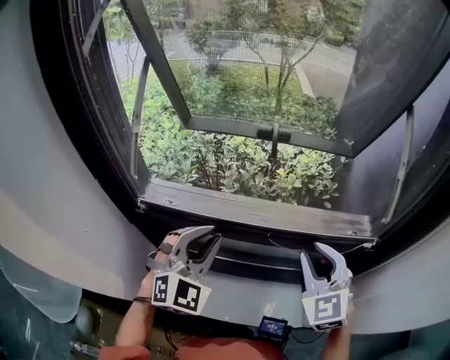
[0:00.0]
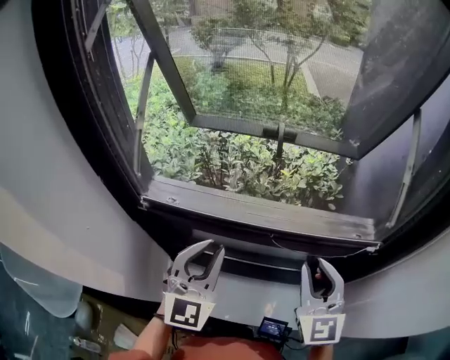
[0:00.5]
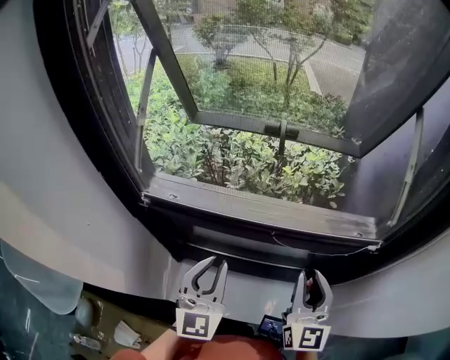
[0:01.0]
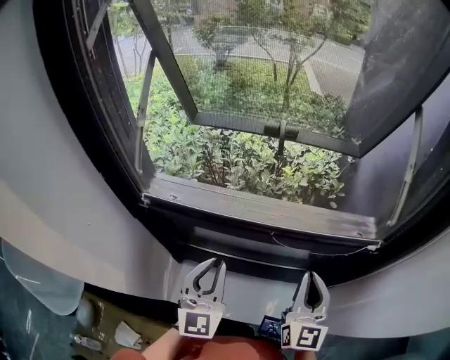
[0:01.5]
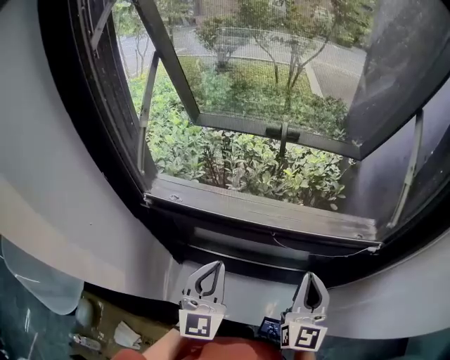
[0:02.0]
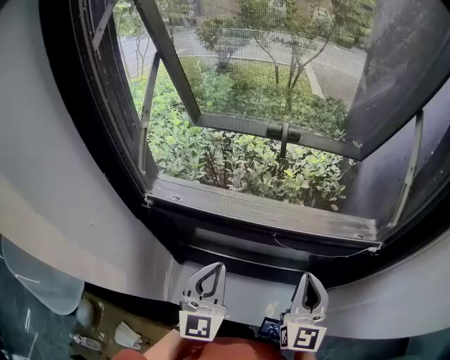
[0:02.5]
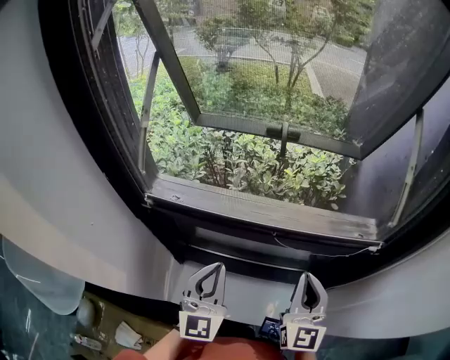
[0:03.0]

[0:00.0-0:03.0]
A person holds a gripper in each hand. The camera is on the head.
0:00.0 to 0:01.5: The right gripper travels backward by roughly 5 cm, and swivels approximately 40 degrees. The left gripper heads downward and backward, covering roughly 10 cm, and swivels approximately 40 degrees.
0:01.5 to 0:03.0: The grippers make only small movements.

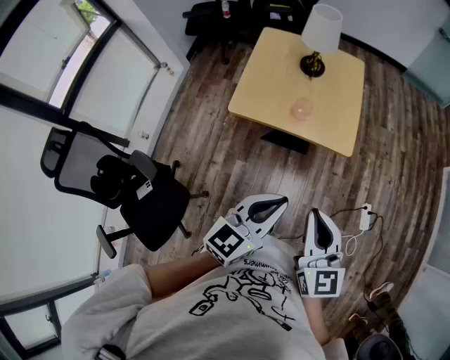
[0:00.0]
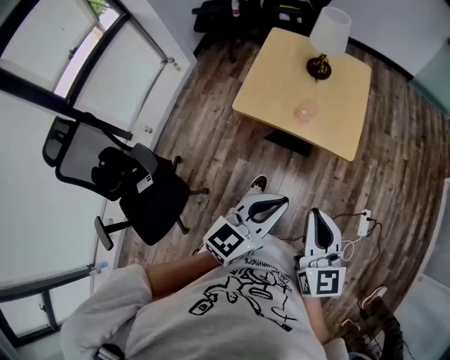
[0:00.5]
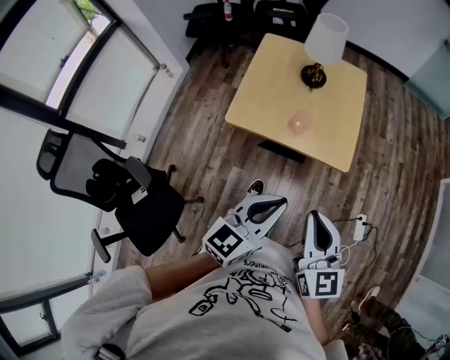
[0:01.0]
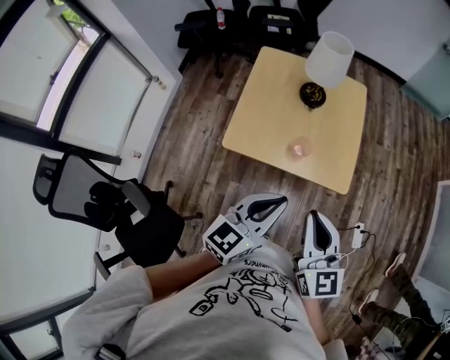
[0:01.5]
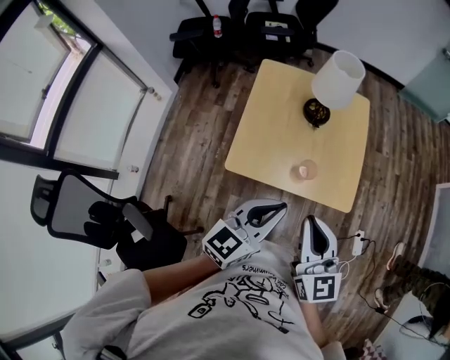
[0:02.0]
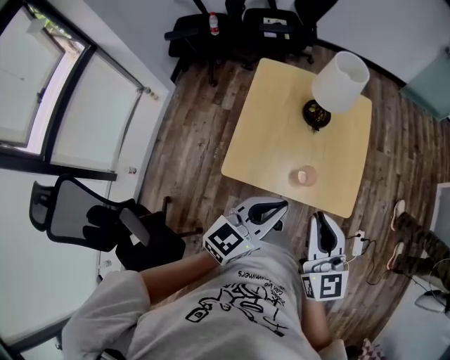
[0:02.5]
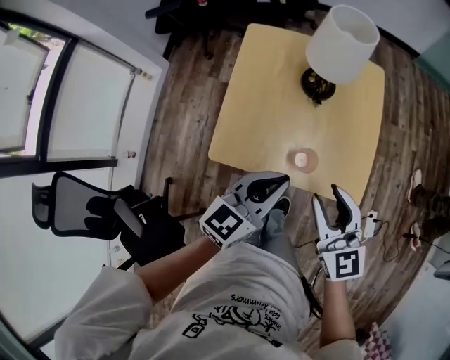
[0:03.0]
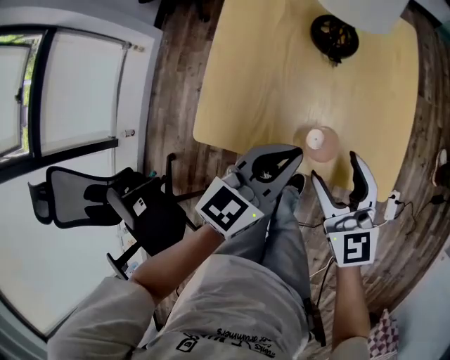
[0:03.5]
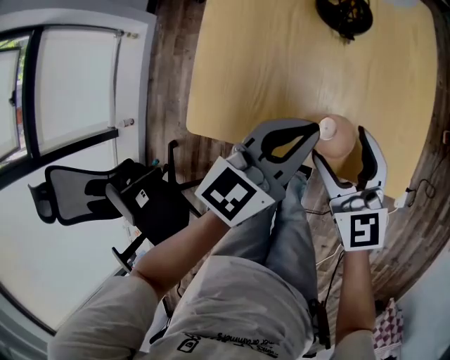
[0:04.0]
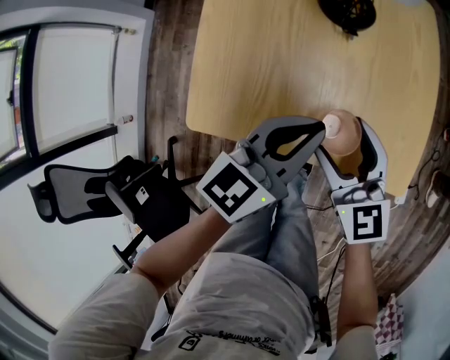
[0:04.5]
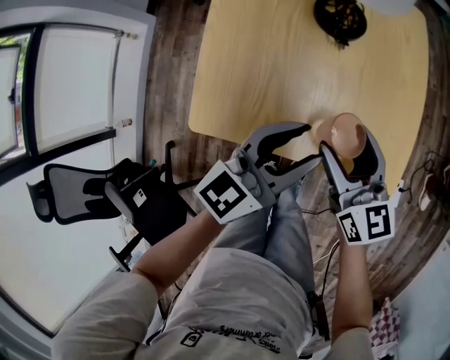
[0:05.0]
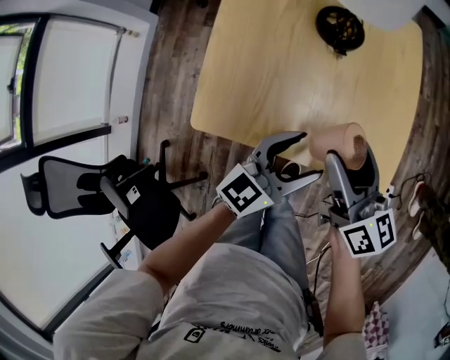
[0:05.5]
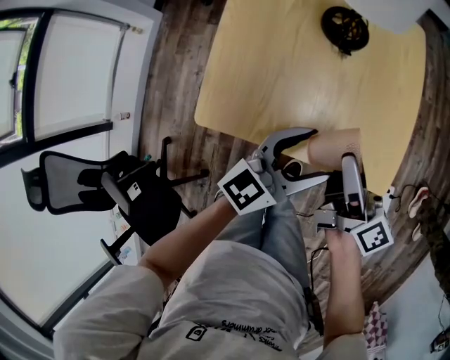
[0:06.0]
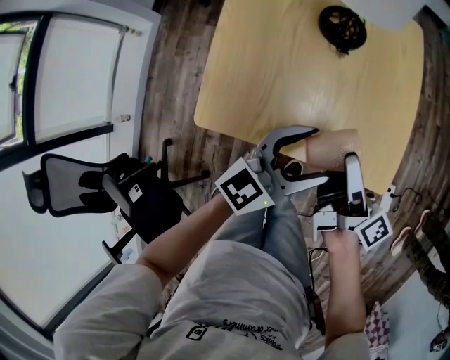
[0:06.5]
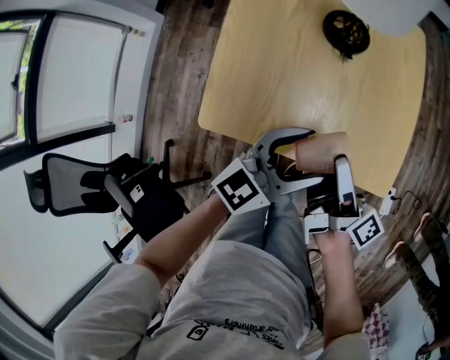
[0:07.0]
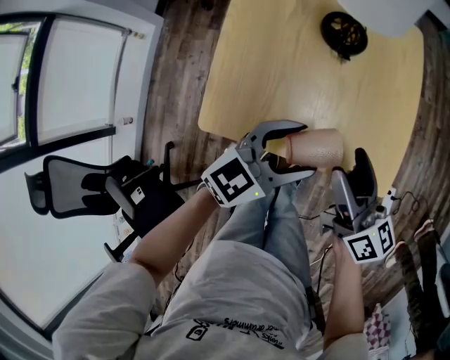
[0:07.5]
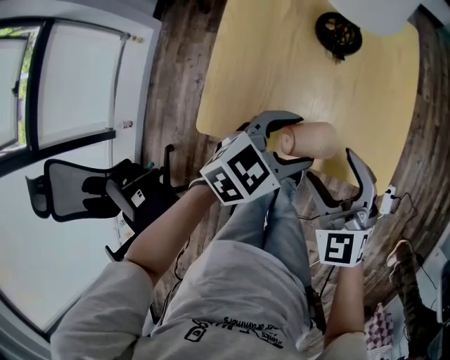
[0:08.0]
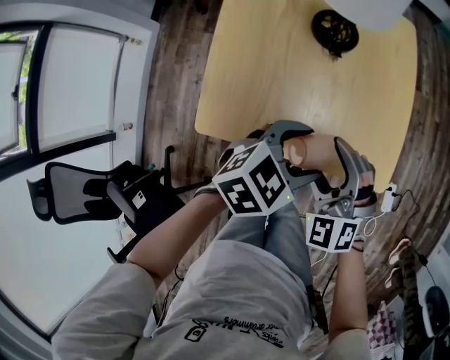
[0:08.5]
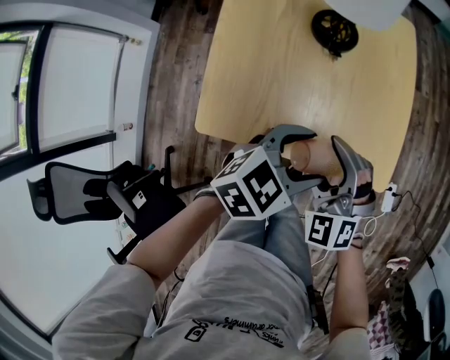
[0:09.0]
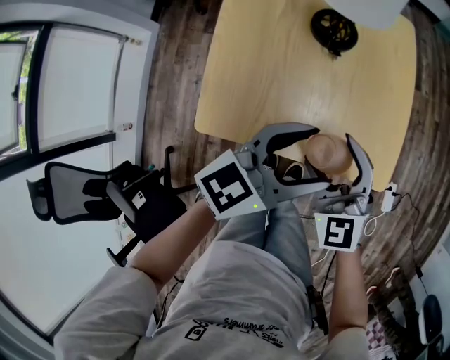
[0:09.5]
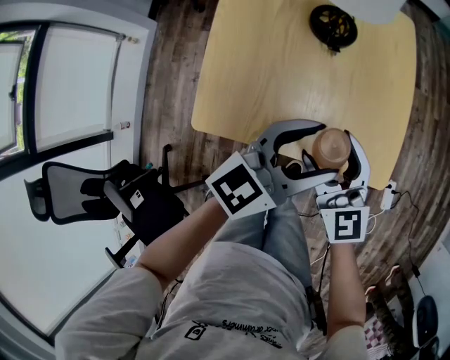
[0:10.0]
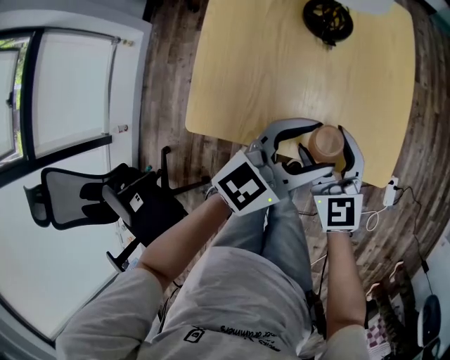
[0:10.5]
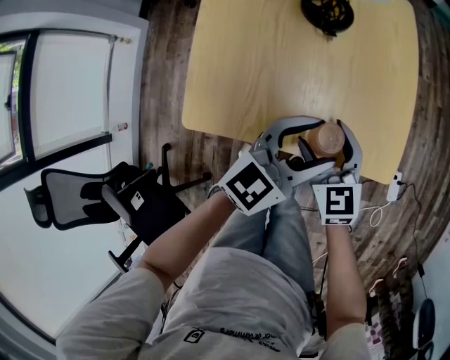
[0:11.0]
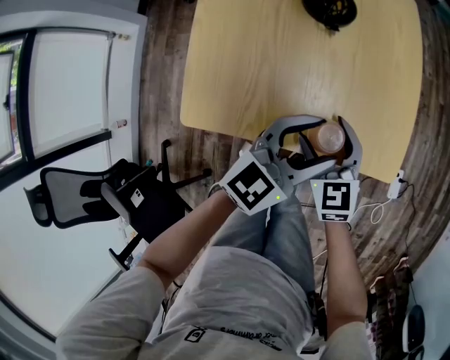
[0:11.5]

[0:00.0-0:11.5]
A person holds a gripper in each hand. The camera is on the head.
0:00.0 to 0:02.0: Both grippers travel together forward and to the left, roughly 25 cm.
0:02.0 to 0:04.0: Both grippers move downward and forward, about 30 cm. The right gripper opens up.
0:04.0 to 0:06.0: The left gripper ends up about 5 cm from where it was, and opens its fingers, while the right gripper shifts some 5 cm upward, and rotates around the line of its fingers by roughly 60 degrees, clockwise from behind.
0:06.0 to 0:07.5: The right gripper changes its angle by roughly 20 degrees.
0:07.5 to 0:09.5: The left gripper heads upward, covering some 5 cm. The right gripper rolls counterclockwise, seen from behind, by some 60 degrees.
0:09.5 to 0:11.5: Both grippers move downward, approximately 10 cm. The right gripper swivels approximately 20 degrees.

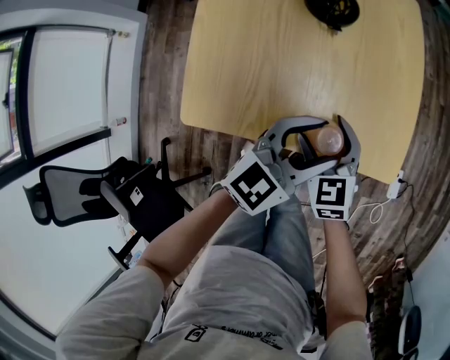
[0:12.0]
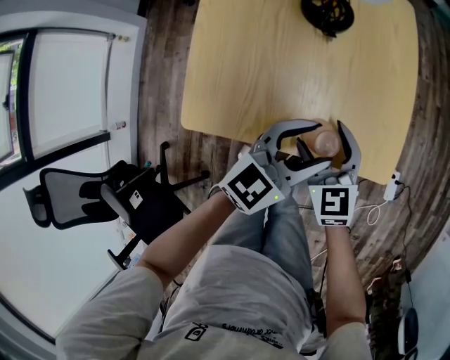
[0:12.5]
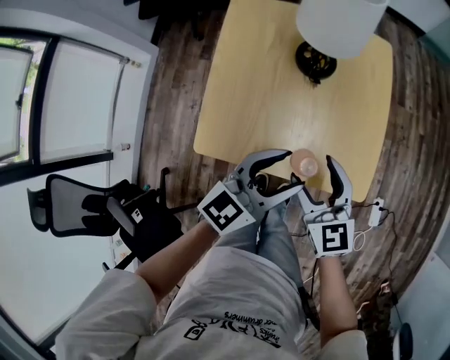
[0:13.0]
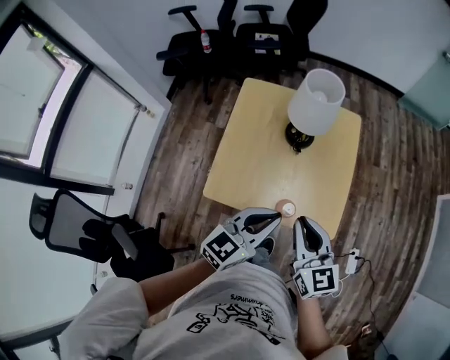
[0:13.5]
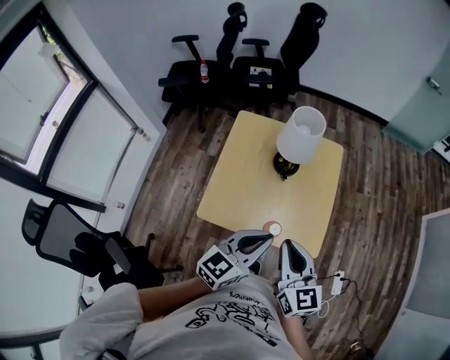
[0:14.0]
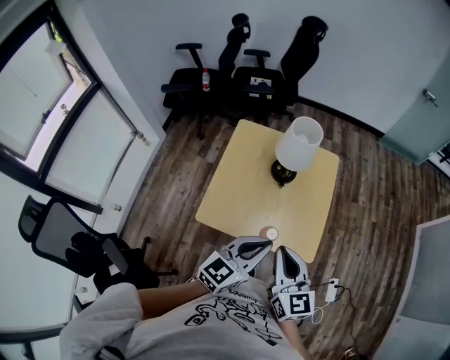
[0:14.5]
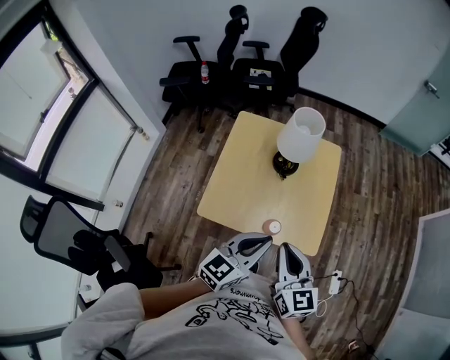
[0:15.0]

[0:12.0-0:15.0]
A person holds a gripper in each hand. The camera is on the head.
0:12.0 to 0:13.5: The left gripper heads upward, covering approximately 20 cm, and closes; the right gripper is displaced upward by roughly 30 cm, turns by some 30 degrees, and closes its fingers.
0:13.5 to 0:15.0: The left gripper changes place by about 5 cm. The right gripper goes about 5 cm upward.

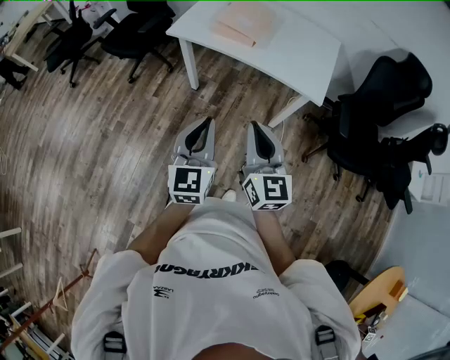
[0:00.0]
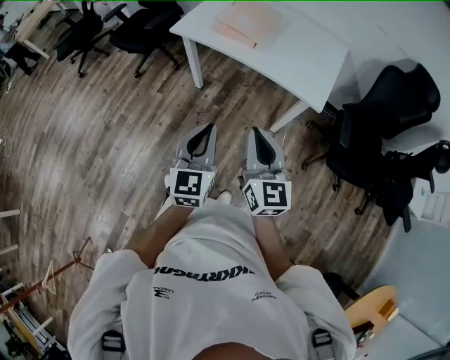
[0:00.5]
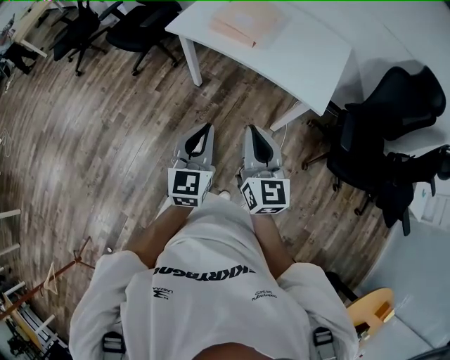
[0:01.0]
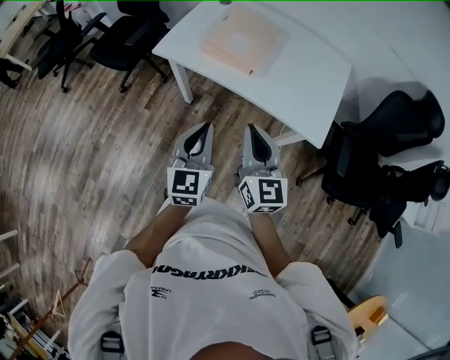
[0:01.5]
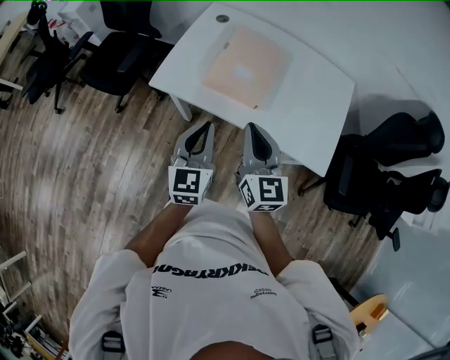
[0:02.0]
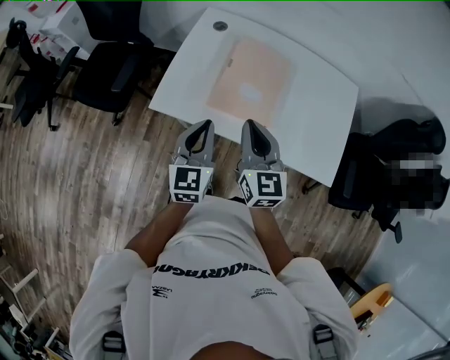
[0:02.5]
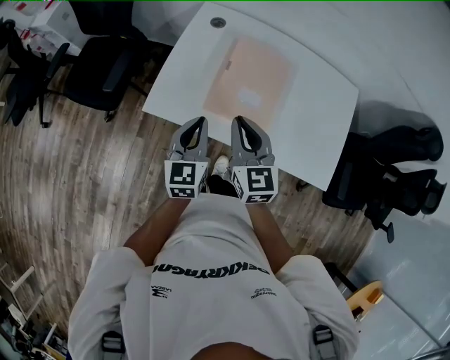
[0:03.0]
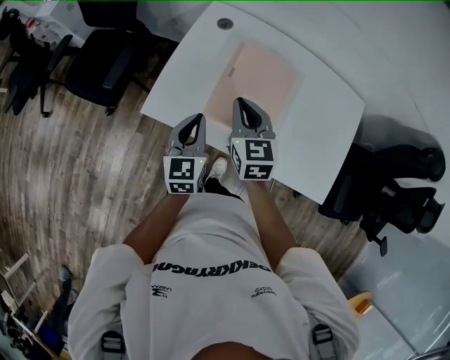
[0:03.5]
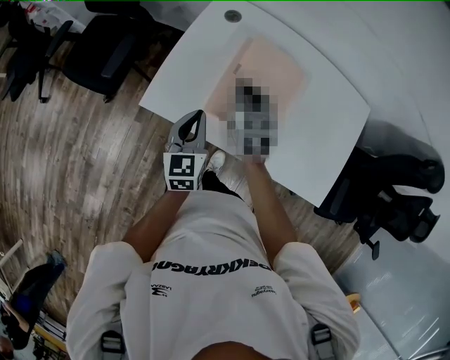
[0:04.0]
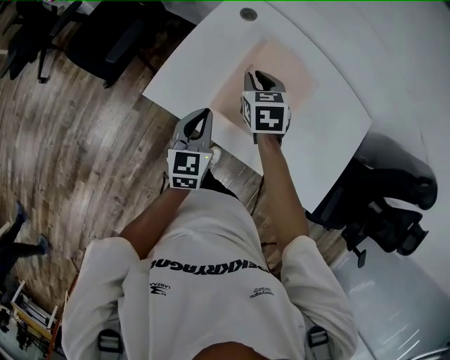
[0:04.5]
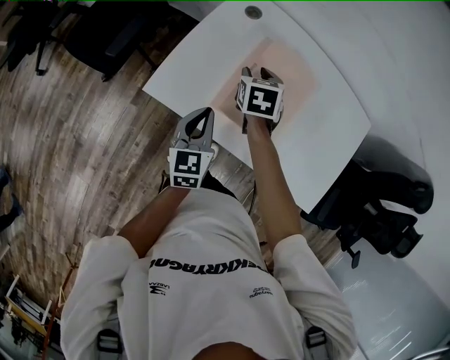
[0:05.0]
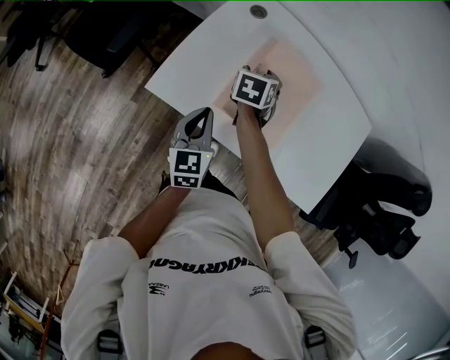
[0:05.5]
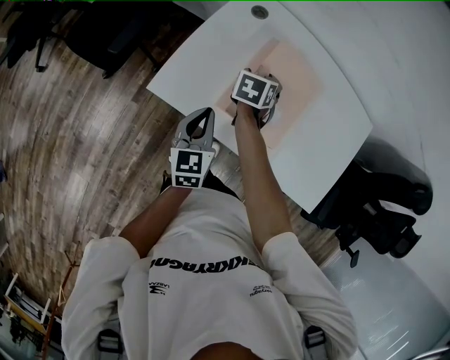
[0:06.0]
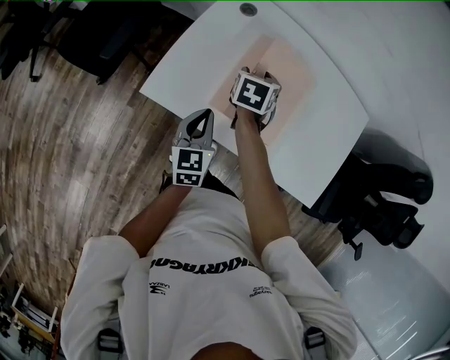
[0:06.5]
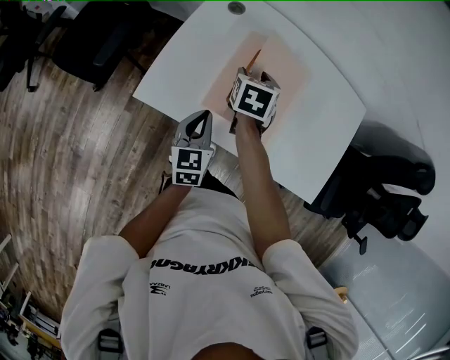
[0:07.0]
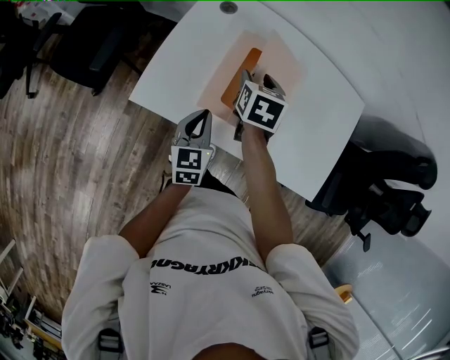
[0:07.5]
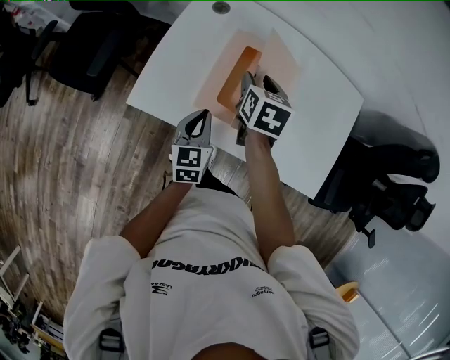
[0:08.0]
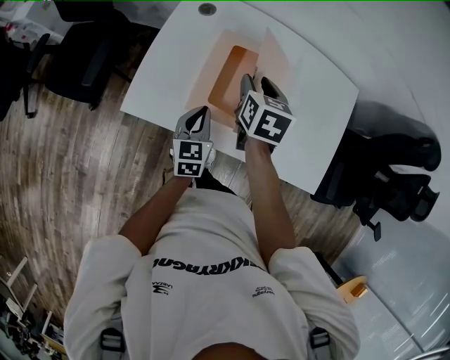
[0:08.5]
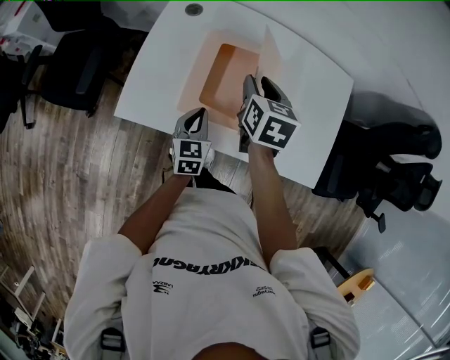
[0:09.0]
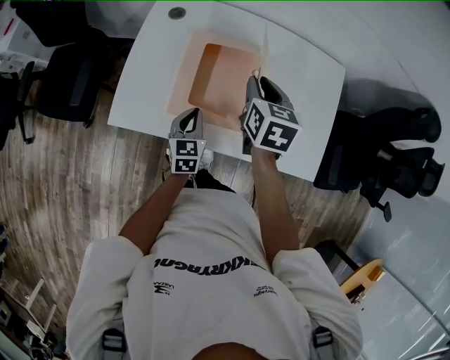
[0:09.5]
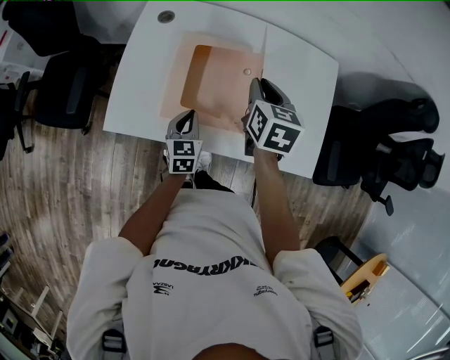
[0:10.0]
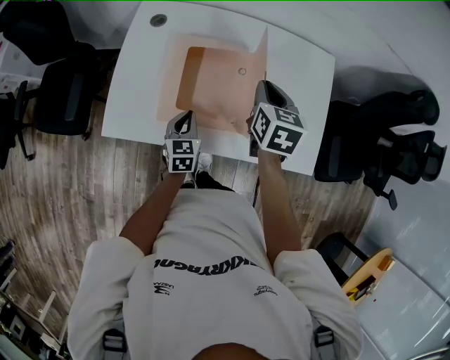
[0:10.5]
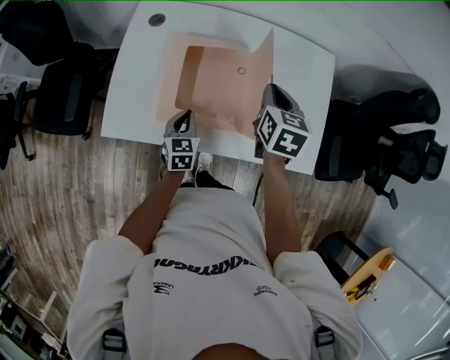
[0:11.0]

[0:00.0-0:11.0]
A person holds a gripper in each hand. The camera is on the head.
0:00.0 to 0:02.0: The two grippers travel together, forward, approximately 40 cm.
0:02.0 to 0:03.5: Both grippers move forward, approximately 25 cm. The right gripper swivels some 20 degrees.
0:03.5 to 0:05.5: The right gripper shifts roughly 20 cm downward and forward, turns by some 30 degrees, and opens; the left gripper shifts some 5 cm downward.
0:05.5 to 0:07.5: The right gripper shifts roughly 10 cm to the right and upward; the left gripper is displaced to the right by about 5 cm.
0:07.5 to 0:09.0: The left gripper shifts roughly 5 cm to the right. The right gripper travels to the right and upward by about 10 cm.
0:09.0 to 0:11.0: The left gripper ends up some 5 cm from where it was; the right gripper is displaced to the right by about 15 cm, and closes up.
